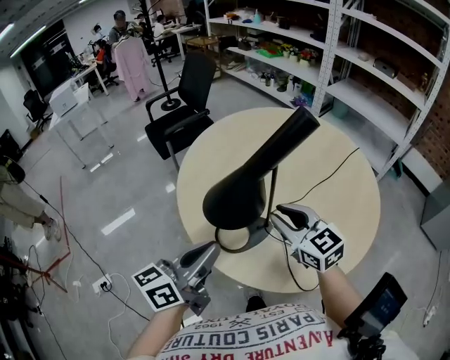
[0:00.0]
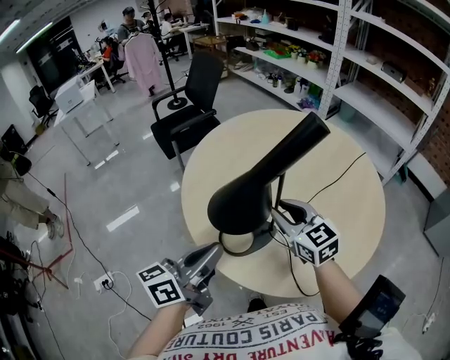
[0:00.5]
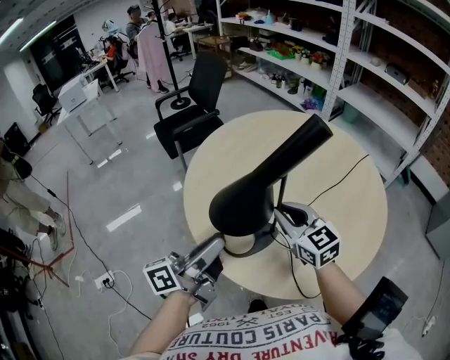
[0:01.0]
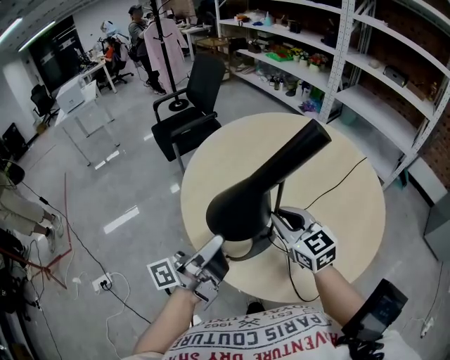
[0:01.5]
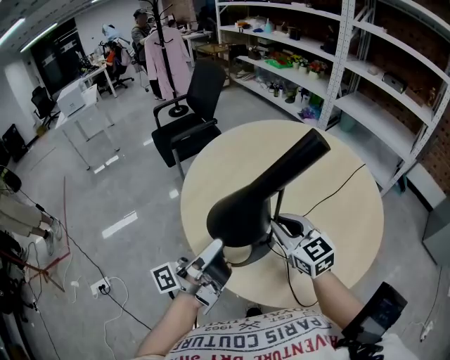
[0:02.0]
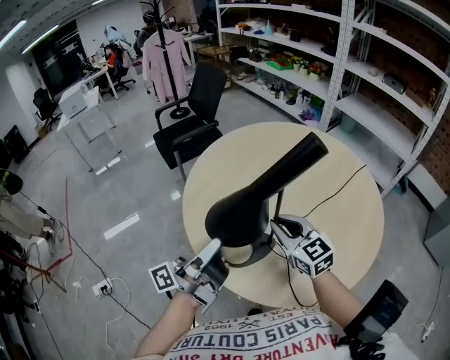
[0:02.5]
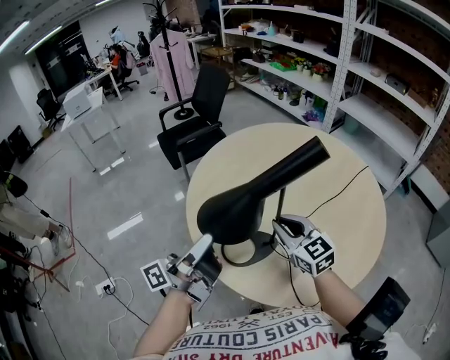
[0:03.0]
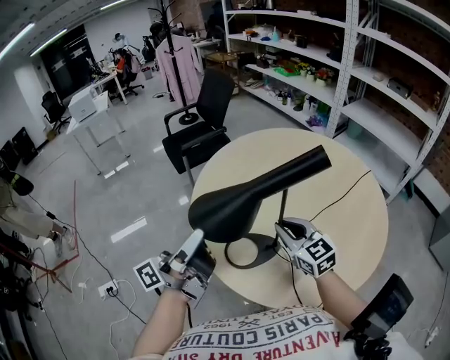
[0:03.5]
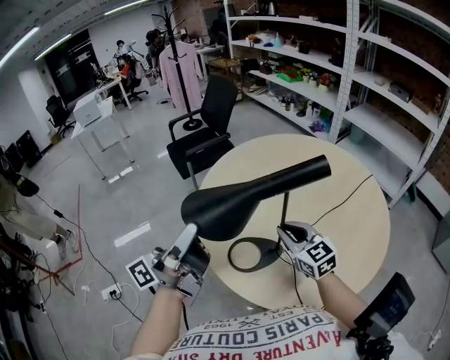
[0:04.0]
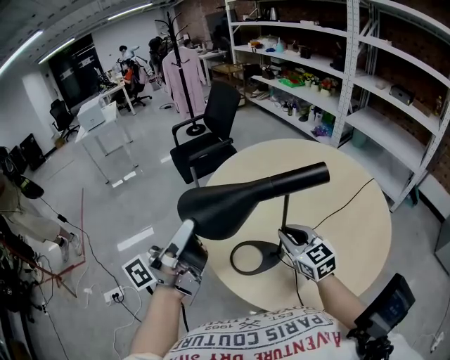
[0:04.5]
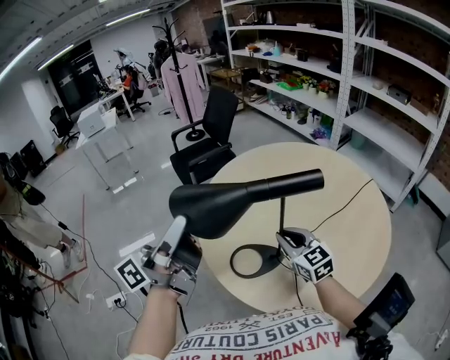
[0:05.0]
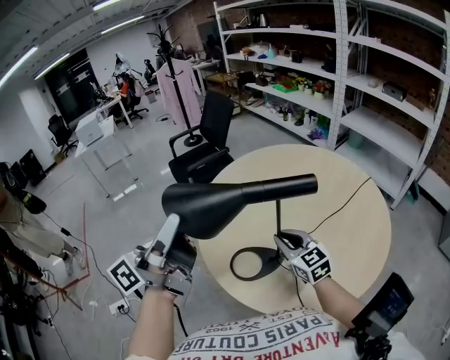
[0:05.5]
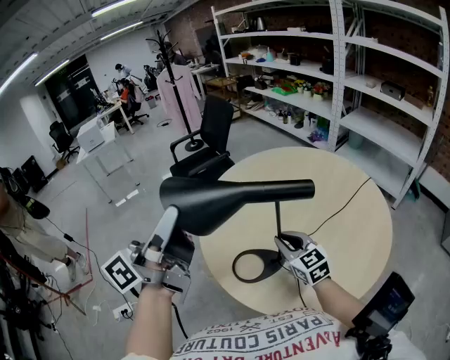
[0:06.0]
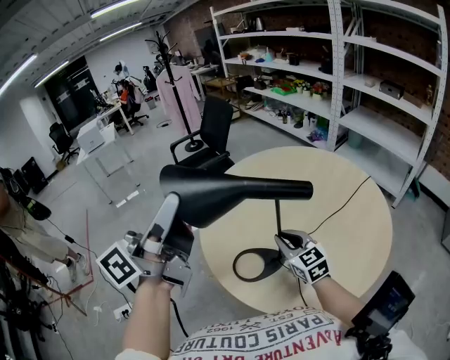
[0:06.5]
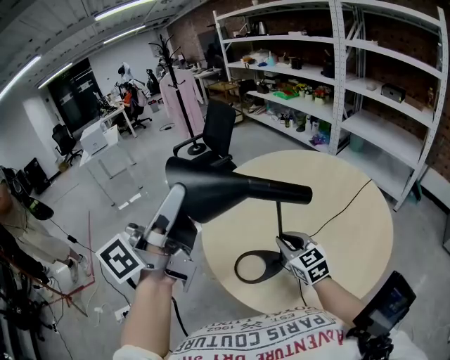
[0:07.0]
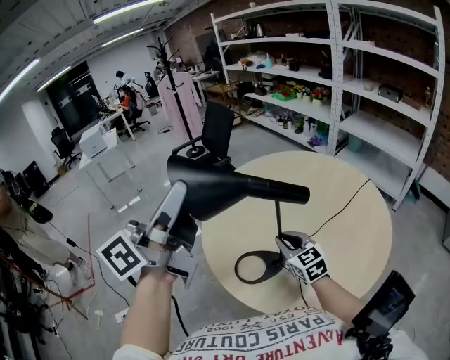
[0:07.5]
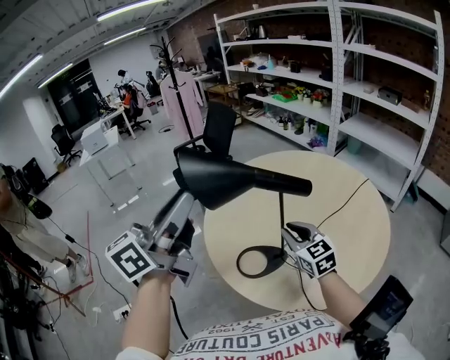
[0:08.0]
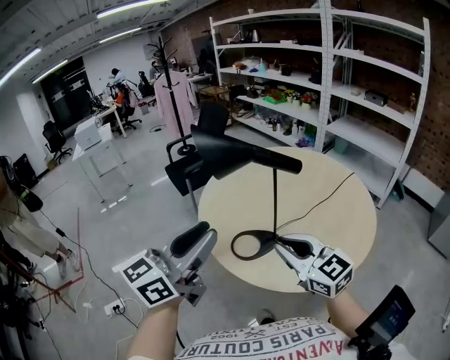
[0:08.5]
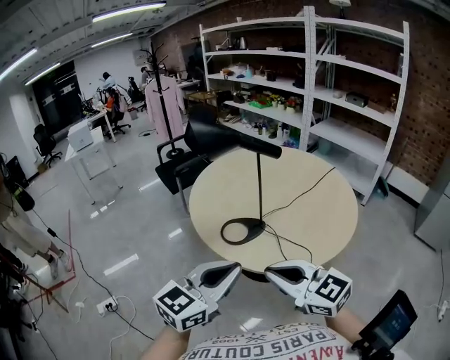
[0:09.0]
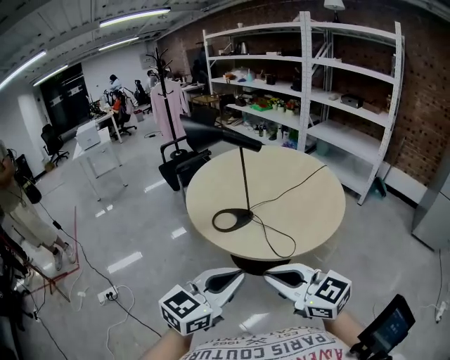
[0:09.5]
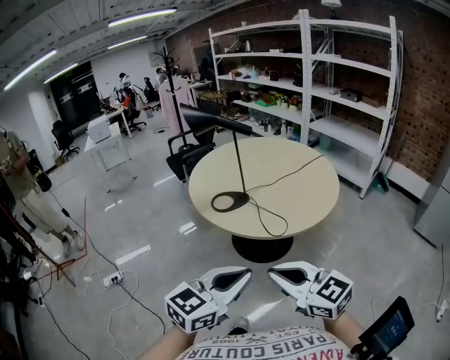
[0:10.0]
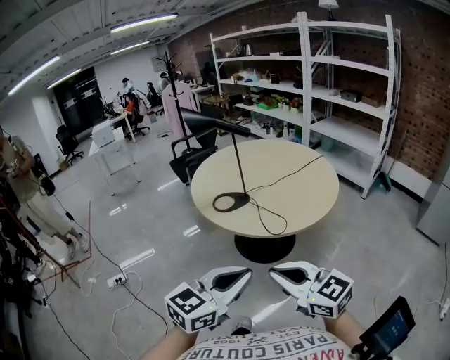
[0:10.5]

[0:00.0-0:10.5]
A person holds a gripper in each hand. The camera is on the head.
0:00.0 to 0:02.0: The left gripper changes its angle by some 50 degrees, and opens, then closes again.
0:02.0 to 0:04.0: The left gripper is displaced upward and to the left by approximately 15 cm.
0:04.0 to 0:06.5: The left gripper travels upward by some 15 cm, and rotates about 20 degrees.
0:06.5 to 0:08.5: The right gripper moves backward and upward, about 20 cm. The left gripper moves backward and downward, some 15 cm, changes its angle by some 30 degrees, and opens up.
0:08.5 to 0:10.5: The right gripper goes some 35 cm backward; the left gripper shifts approximately 40 cm backward and to the right, swivels about 20 degrees, and closes up.

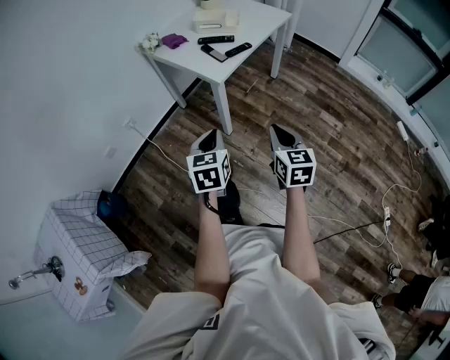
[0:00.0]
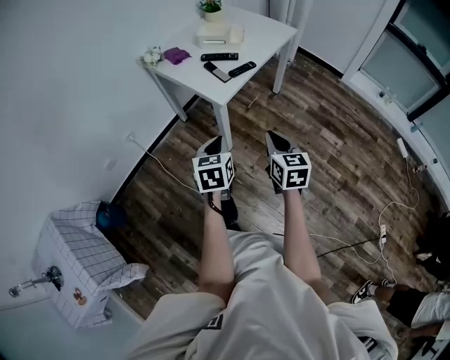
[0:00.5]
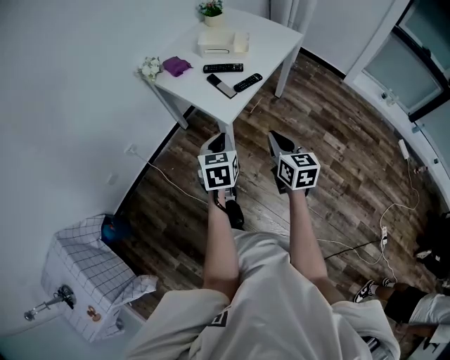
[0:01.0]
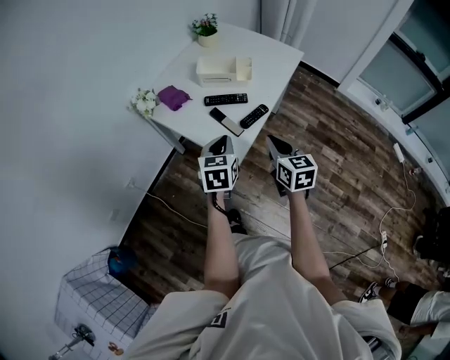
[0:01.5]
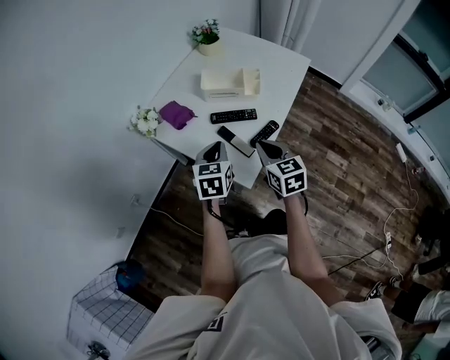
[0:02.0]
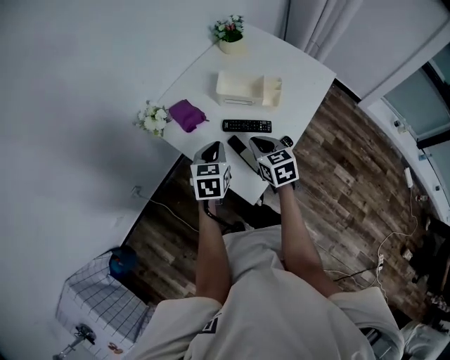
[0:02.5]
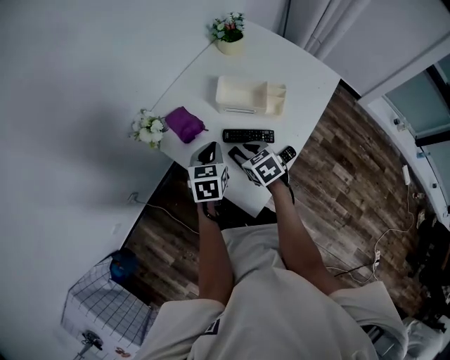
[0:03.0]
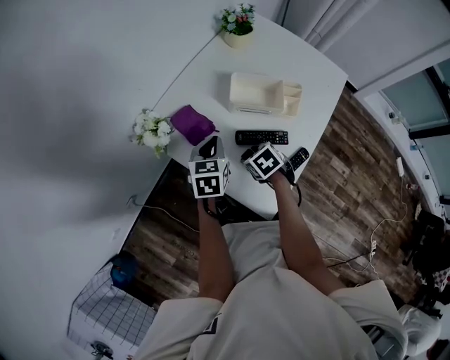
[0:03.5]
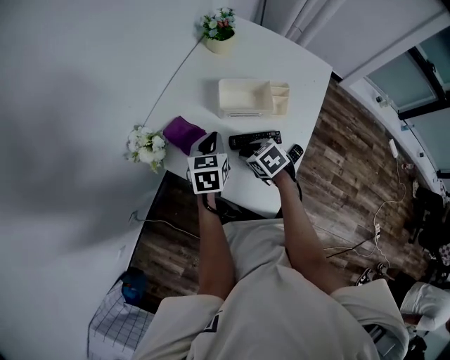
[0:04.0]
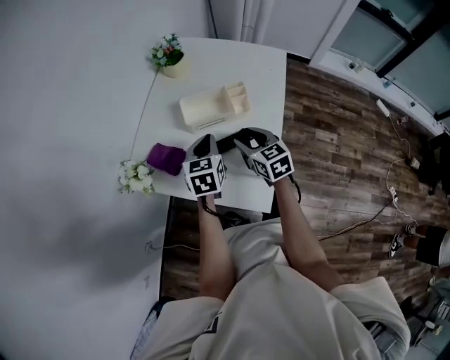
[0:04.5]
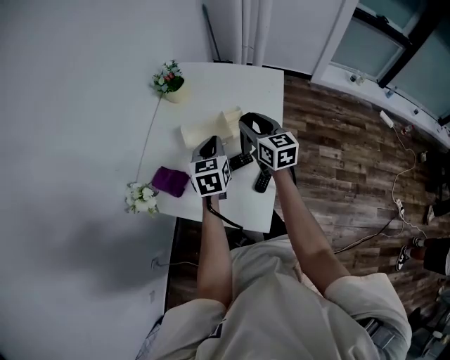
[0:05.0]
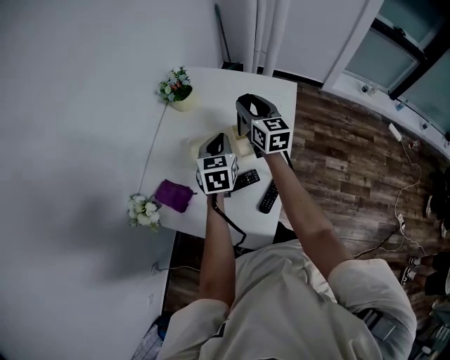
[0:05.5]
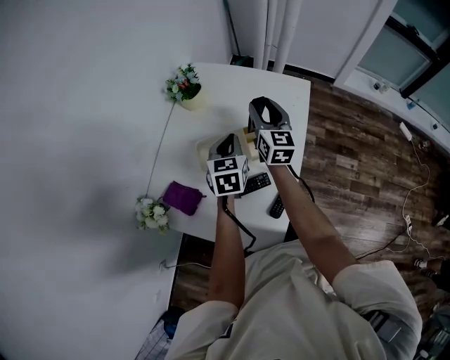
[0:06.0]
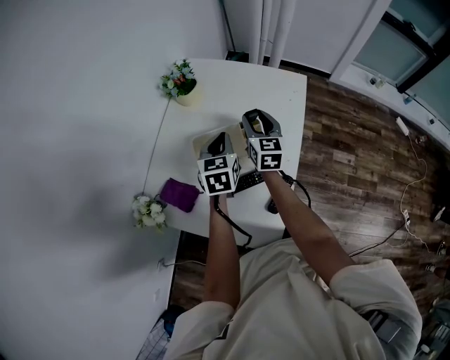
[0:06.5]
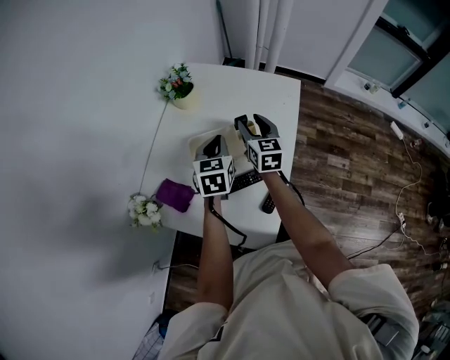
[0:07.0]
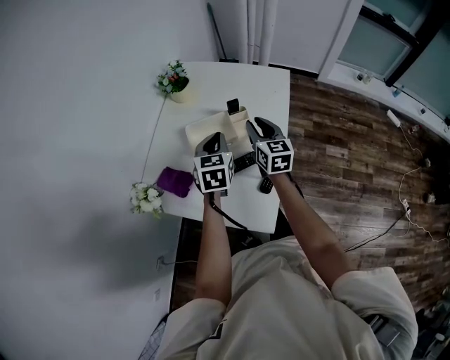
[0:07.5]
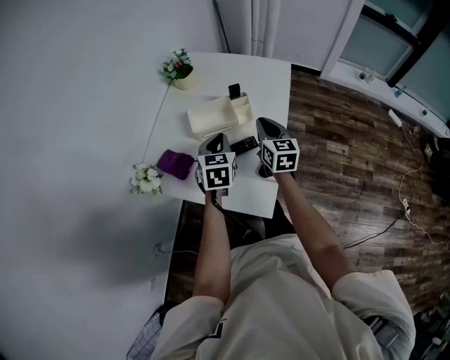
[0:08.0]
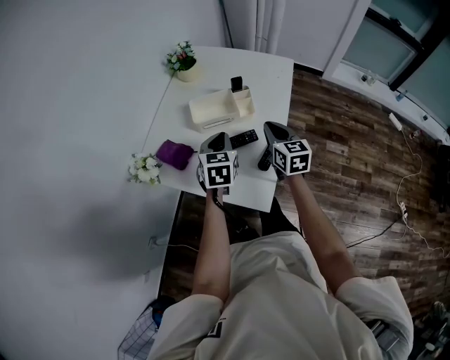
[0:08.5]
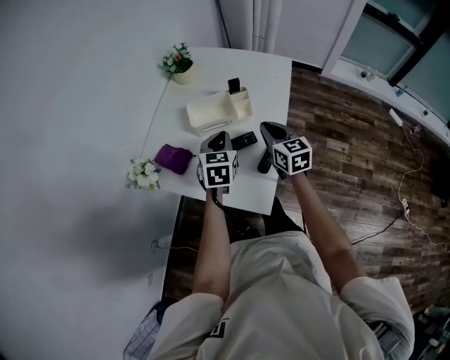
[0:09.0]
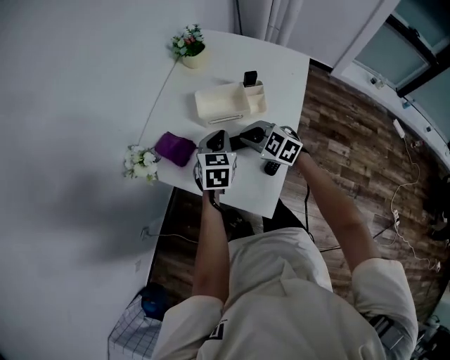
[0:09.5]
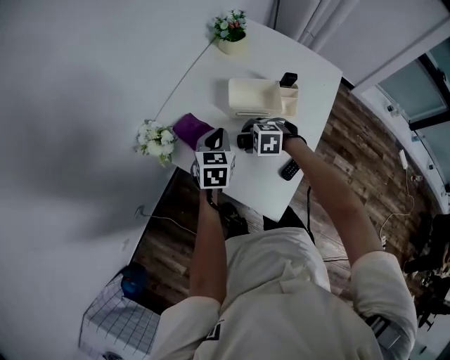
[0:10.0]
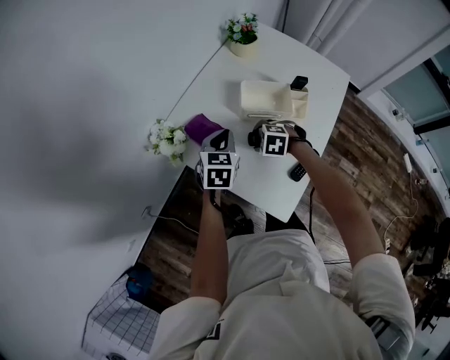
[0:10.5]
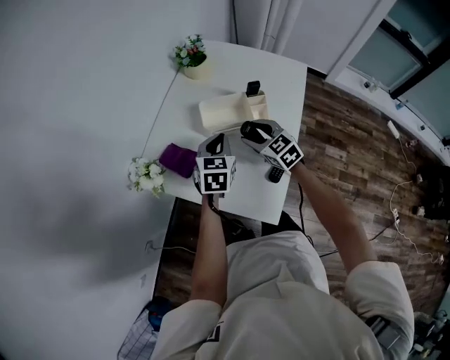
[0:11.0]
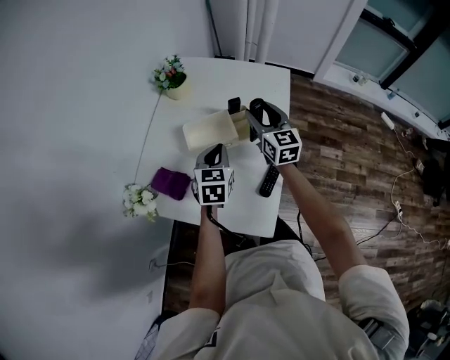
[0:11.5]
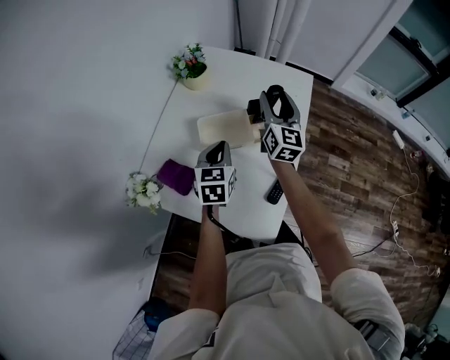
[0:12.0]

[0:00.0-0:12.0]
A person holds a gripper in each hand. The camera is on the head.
0:00.0 to 0:02.0: The two grippers travel together, forward, about 50 cm.
0:02.0 to 0:04.0: The left gripper travels forward by some 20 cm. Meanwhile the right gripper is displaced forward, downward and to the left by approximately 25 cm, angles its fingers downward, by some 30 degrees, and opens its fingers.
0:04.0 to 0:06.0: The right gripper moves roughly 40 cm, and tips its fingers upward by approximately 60 degrees. The left gripper shifts by roughly 25 cm.
0:06.0 to 0:08.0: Both grippers travel together backward, approximately 20 cm. The right gripper closes up.
0:08.0 to 0:10.0: The right gripper changes place by about 25 cm, tilts its fingers approximately 50 degrees downward, and opens up. The left gripper ends up about 15 cm from where it was.
0:10.0 to 0:12.0: The left gripper ends up about 15 cm from where it was. The right gripper ends up about 35 cm from where it was, and tips its fingers upward by some 70 degrees.

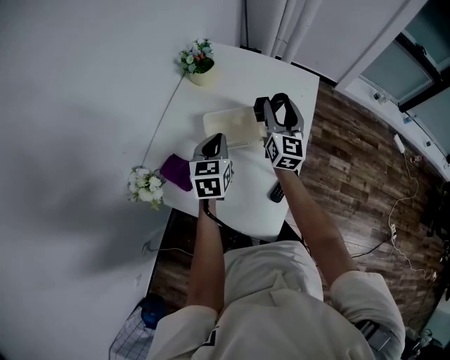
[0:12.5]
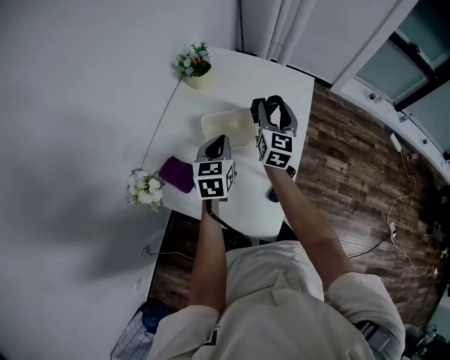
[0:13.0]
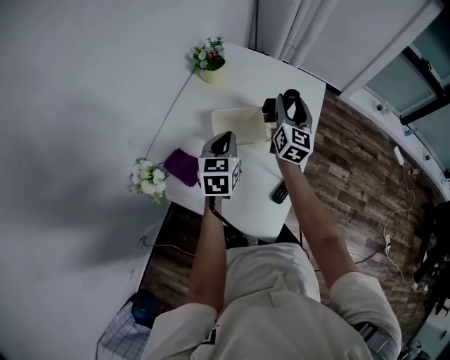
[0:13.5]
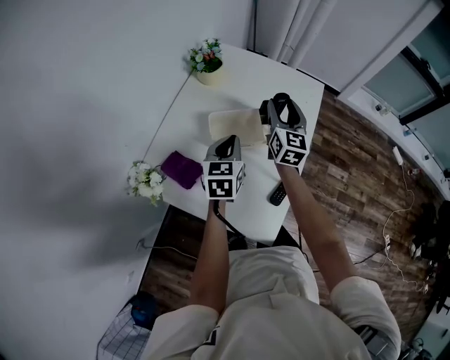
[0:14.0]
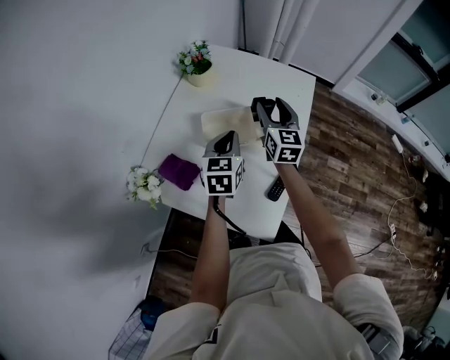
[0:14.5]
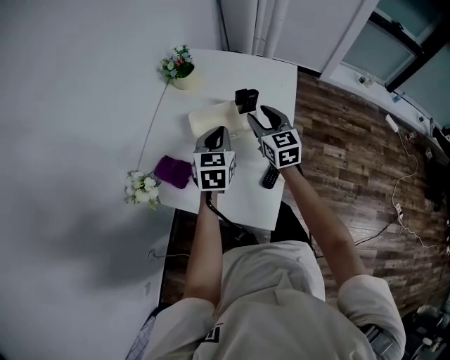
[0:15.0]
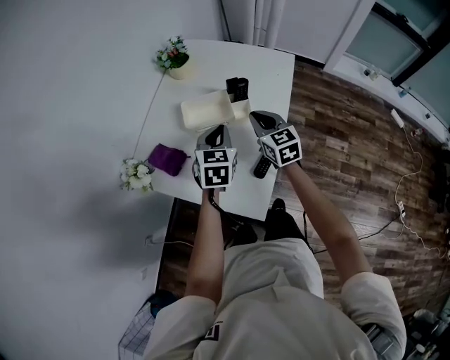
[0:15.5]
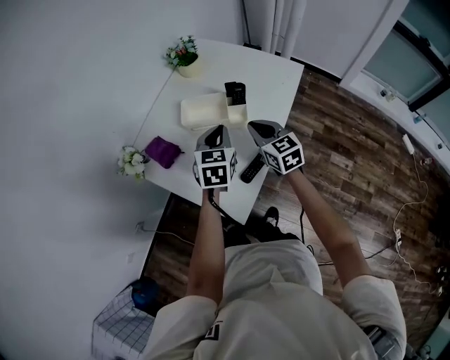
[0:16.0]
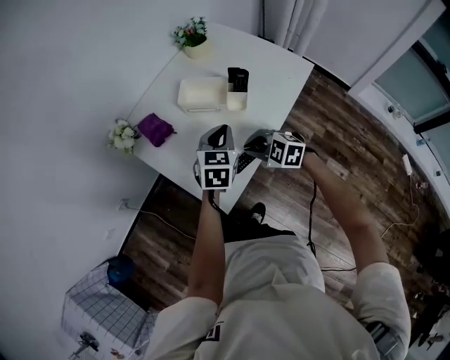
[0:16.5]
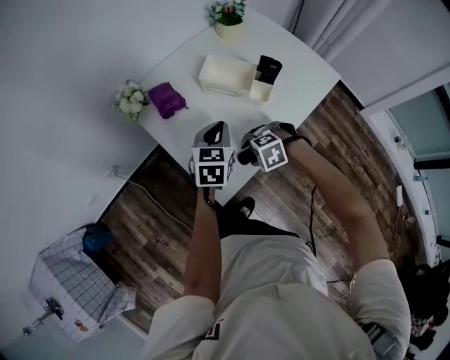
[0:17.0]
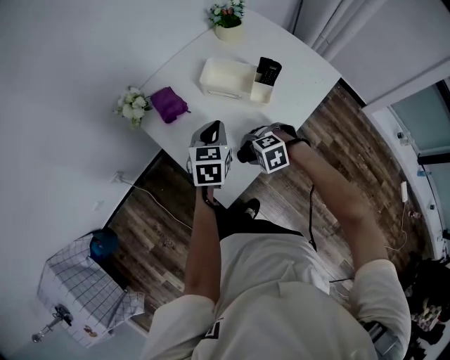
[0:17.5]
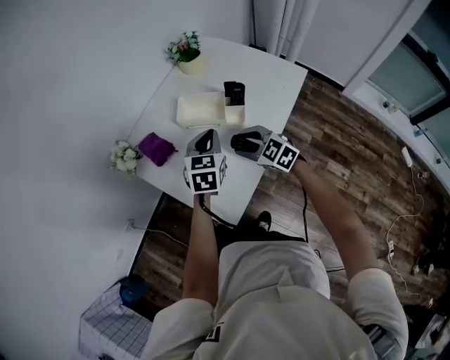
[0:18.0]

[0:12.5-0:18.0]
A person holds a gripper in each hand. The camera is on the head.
0:12.5 to 0:14.5: The grippers stay close to where they were, moving slightly.
0:14.5 to 0:16.0: The right gripper moves backward, roughly 15 cm, changes its angle by some 30 degrees, and closes up. Meanwhile the left gripper travels to the right and backward by some 10 cm.
0:16.0 to 0:18.0: The right gripper moves downward, roughly 5 cm, changes its angle by about 40 degrees, and opens up.
